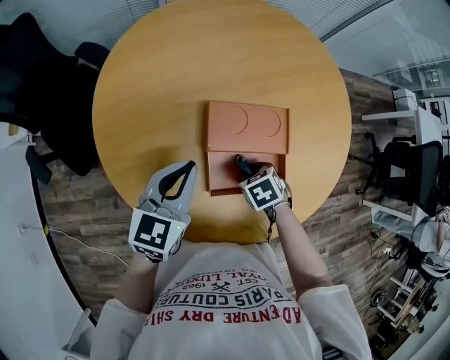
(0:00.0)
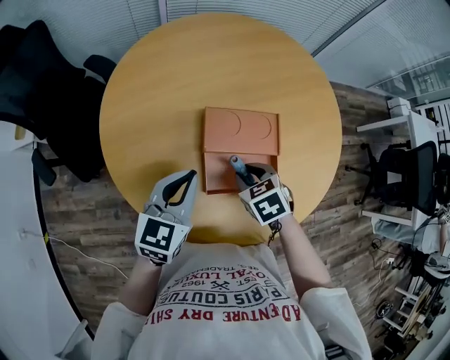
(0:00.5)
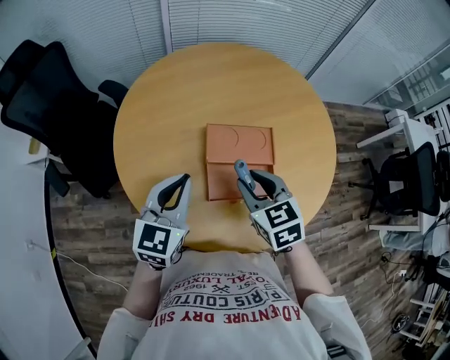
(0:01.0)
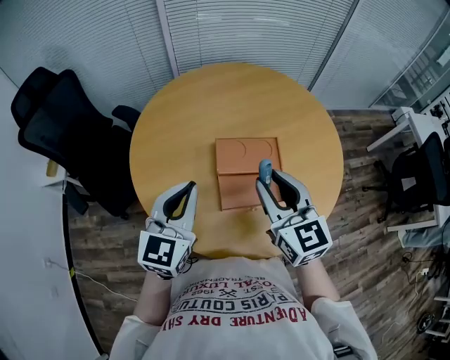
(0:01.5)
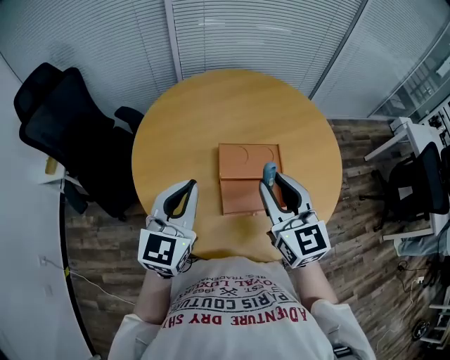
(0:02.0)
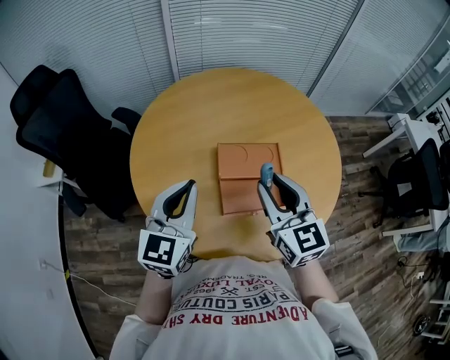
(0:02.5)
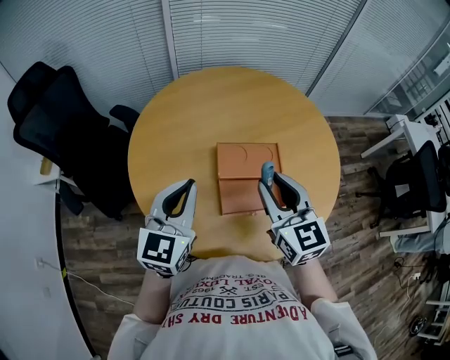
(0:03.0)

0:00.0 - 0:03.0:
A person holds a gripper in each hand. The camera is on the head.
0:00.0 - 0:01.5: The right gripper moves upward, approximately 35 cm, and tips its fingers upward by roughly 70 degrees; the left gripper heads upward, covering about 15 cm.
0:01.5 - 0:03.0: The grippers make only small movements.

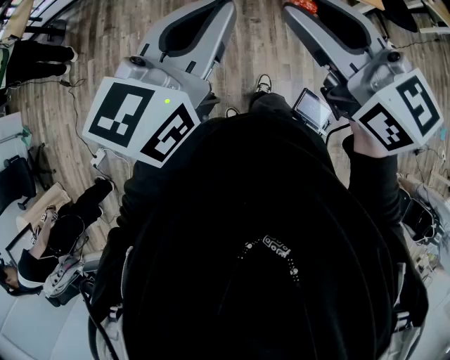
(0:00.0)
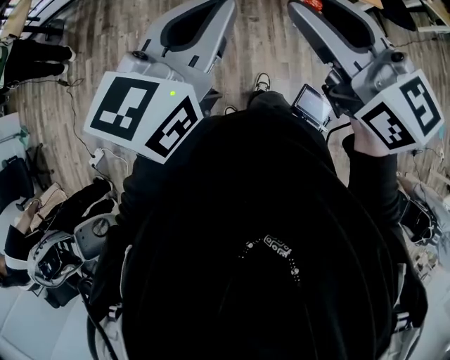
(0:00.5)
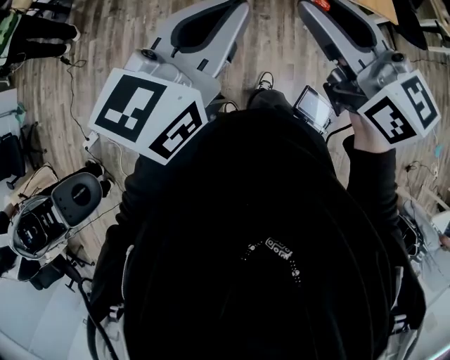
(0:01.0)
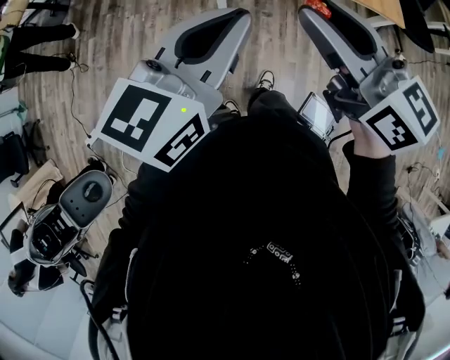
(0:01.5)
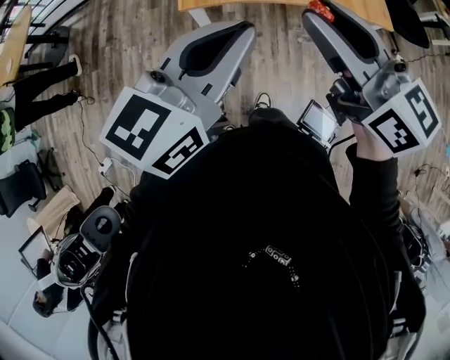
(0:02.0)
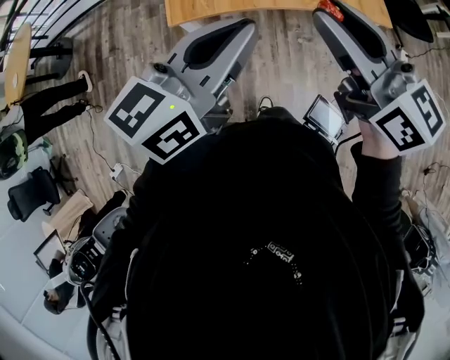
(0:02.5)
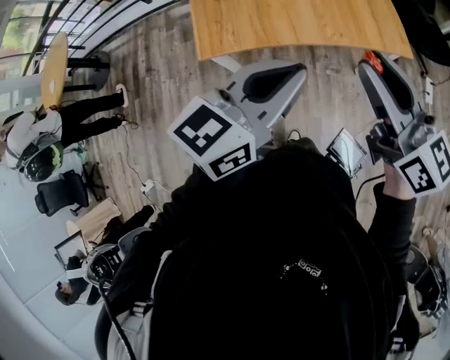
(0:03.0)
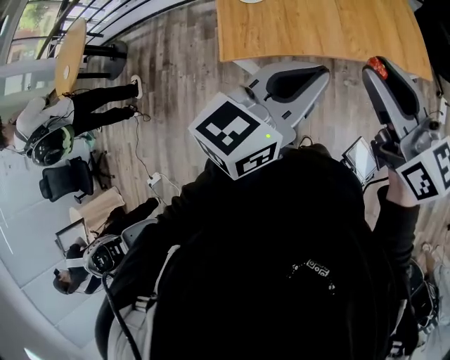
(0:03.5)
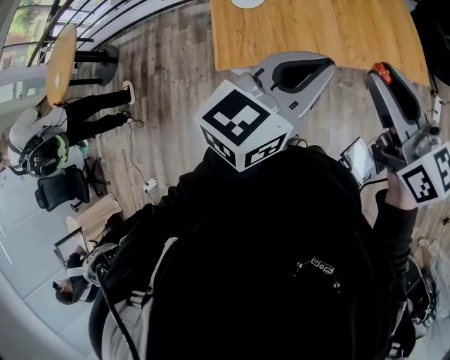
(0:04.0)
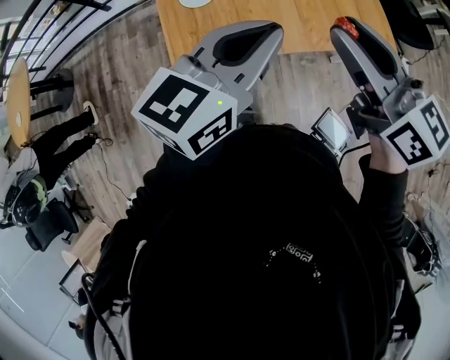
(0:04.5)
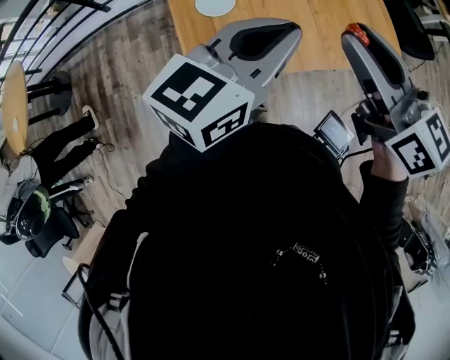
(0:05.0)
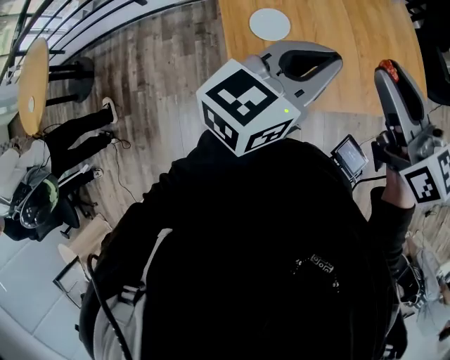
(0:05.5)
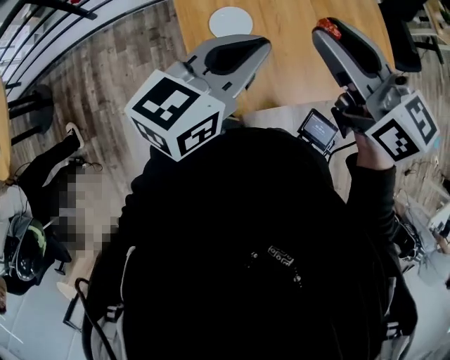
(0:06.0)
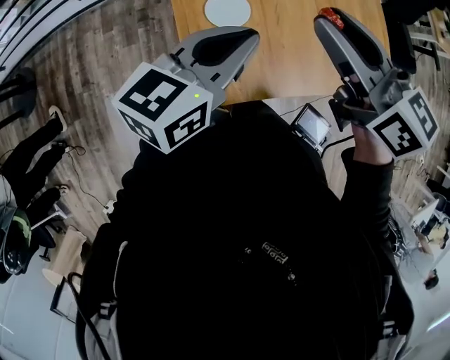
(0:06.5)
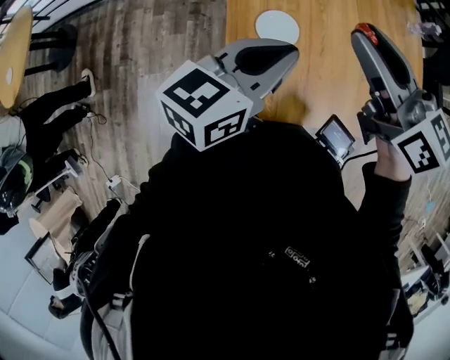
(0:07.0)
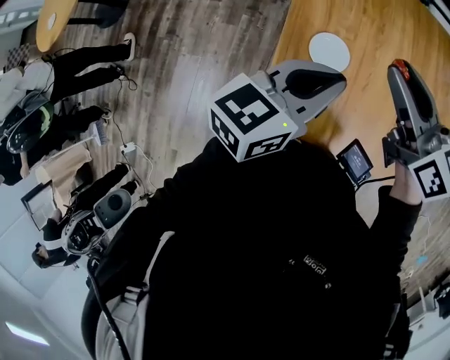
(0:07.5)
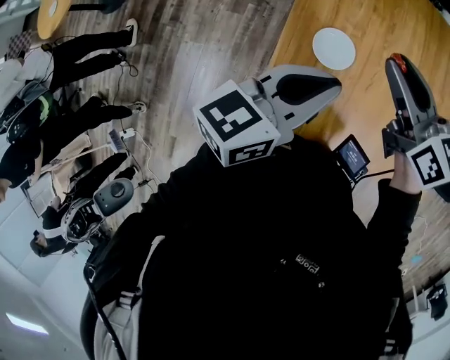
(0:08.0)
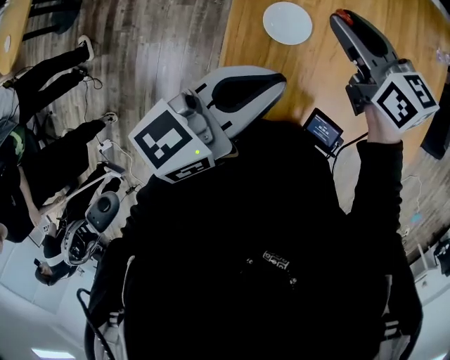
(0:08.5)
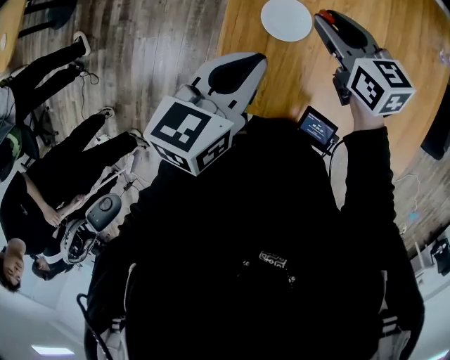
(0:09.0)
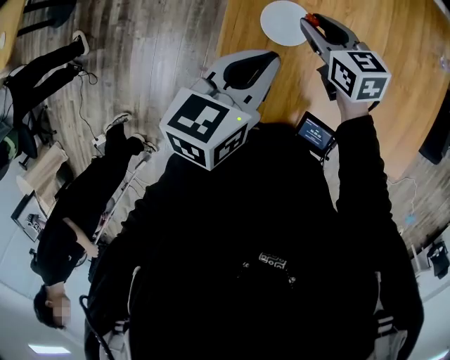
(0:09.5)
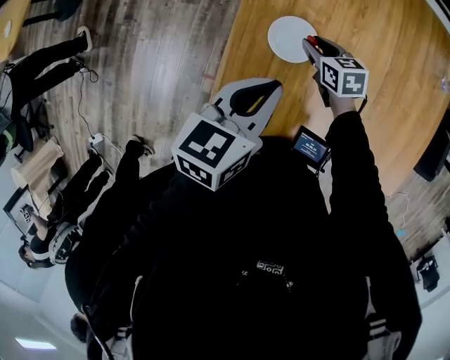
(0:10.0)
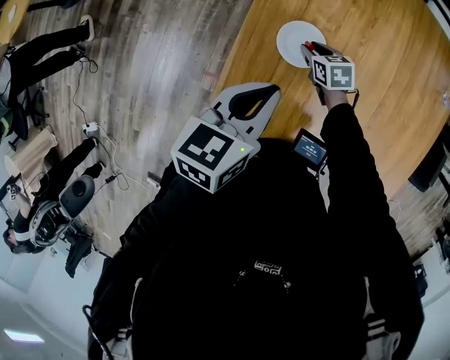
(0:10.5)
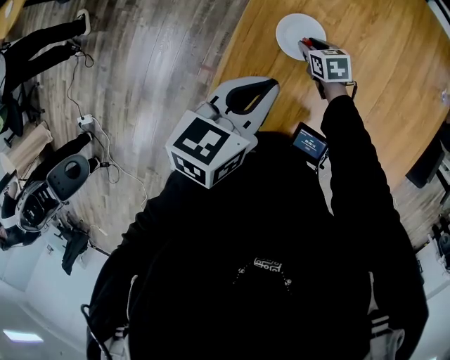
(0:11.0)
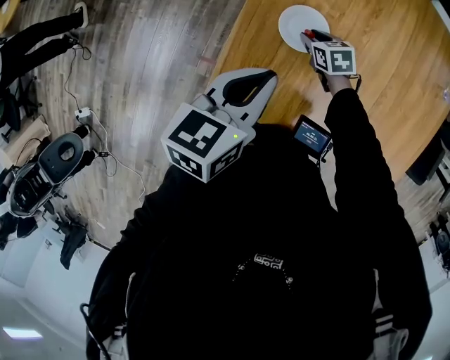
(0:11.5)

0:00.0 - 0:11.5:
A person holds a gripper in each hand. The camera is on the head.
0:00.0 - 0:02.0: Both grippers travel together forward and to the right, approximately 20 cm.
0:02.0 - 0:04.0: The two grippers go roughly 20 cm forward and to the right.
0:04.0 - 0:06.0: Both grippers move to the left and forward, about 35 cm.
0:06.0 - 0:07.5: The right gripper moves forward and downward, some 10 cm, while the left gripper heads forward, covering roughly 5 cm.
0:07.5 - 0:09.5: The right gripper travels downward by roughly 25 cm, and swivels roughly 20 degrees. The left gripper heads downward, covering roughly 10 cm, and rotates about 20 degrees.
0:09.5 - 0:11.5: The left gripper ends up approximately 5 cm from where it was, while the right gripper travels downward by about 20 cm, and changes its angle by some 20 degrees.

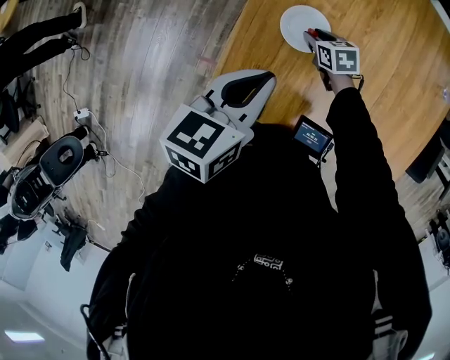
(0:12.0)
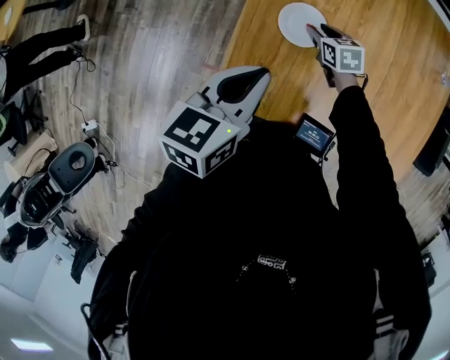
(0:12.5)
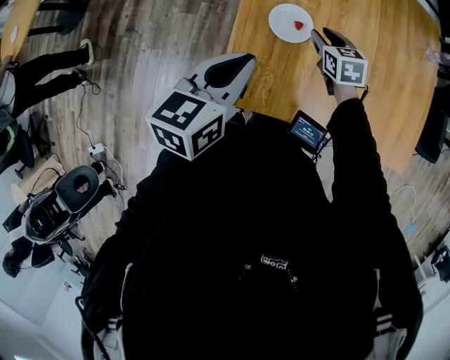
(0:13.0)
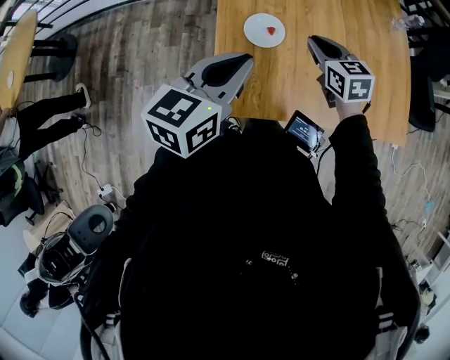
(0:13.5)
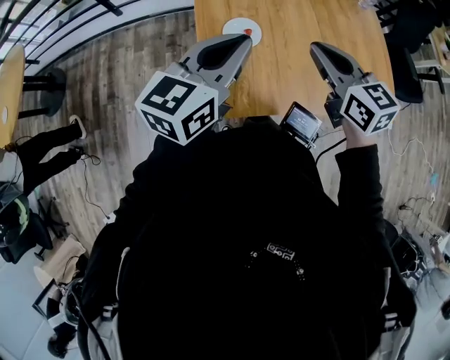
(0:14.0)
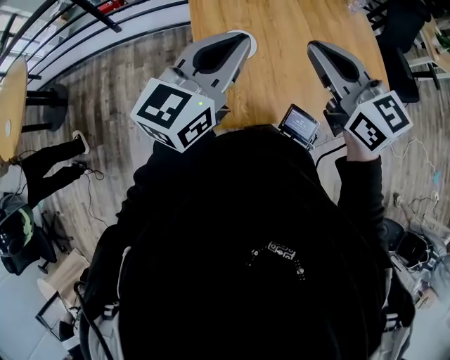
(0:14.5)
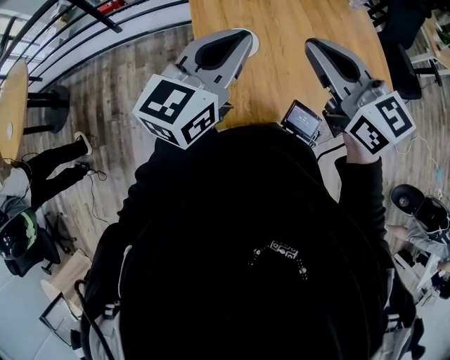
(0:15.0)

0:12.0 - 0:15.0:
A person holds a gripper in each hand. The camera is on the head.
0:12.0 - 0:13.5: The left gripper is displaced upward by roughly 5 cm, and rotates approximately 20 degrees, while the right gripper heads upward, covering some 20 cm, changes its angle by approximately 30 degrees, and closes.
0:13.5 - 0:15.0: The right gripper moves upward, roughly 30 cm, and rotates some 30 degrees. The left gripper heads upward, covering approximately 15 cm, and rotates roughly 20 degrees.

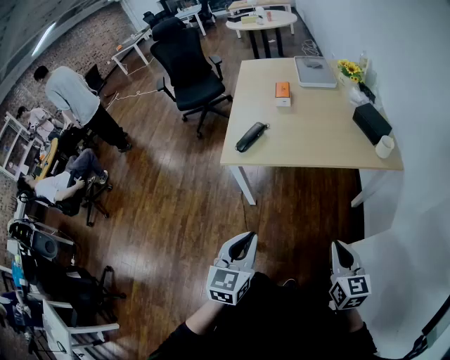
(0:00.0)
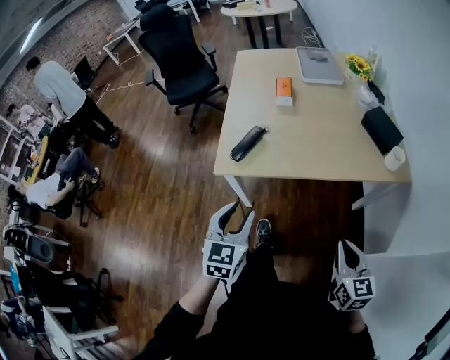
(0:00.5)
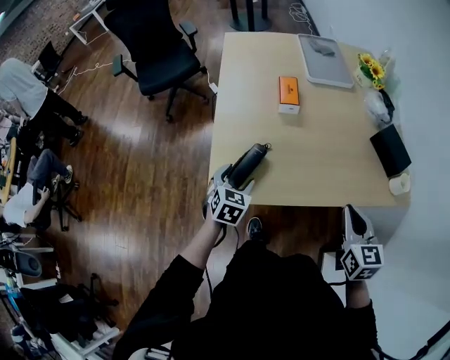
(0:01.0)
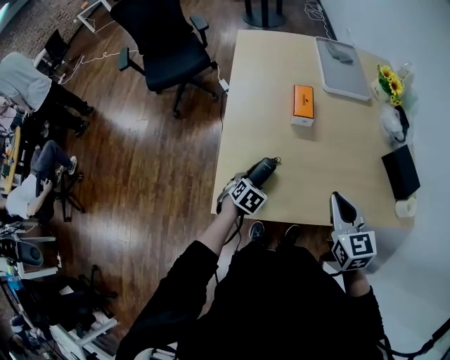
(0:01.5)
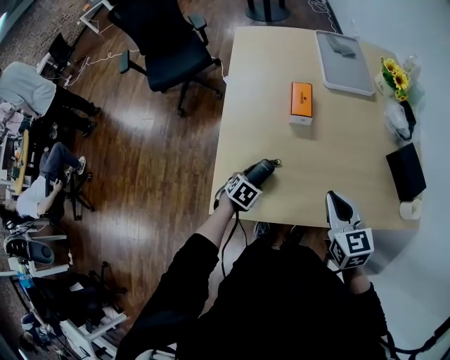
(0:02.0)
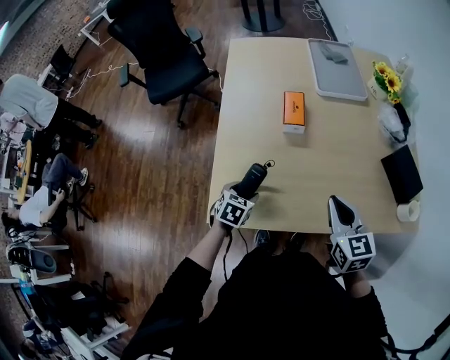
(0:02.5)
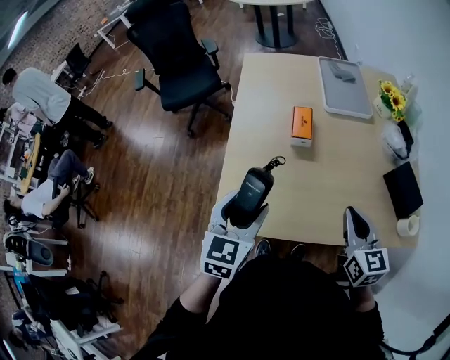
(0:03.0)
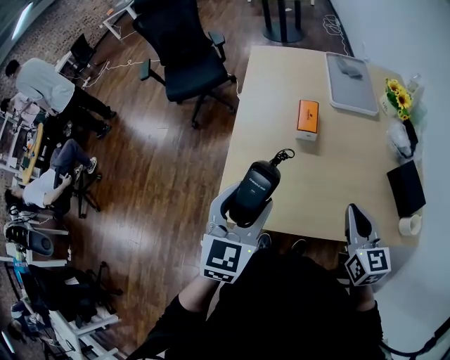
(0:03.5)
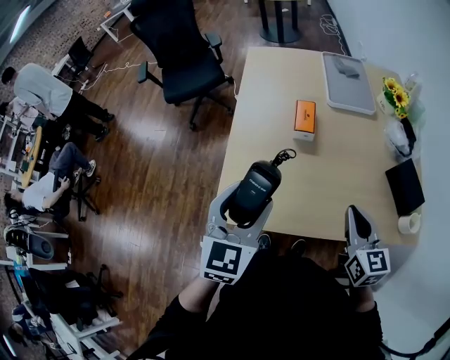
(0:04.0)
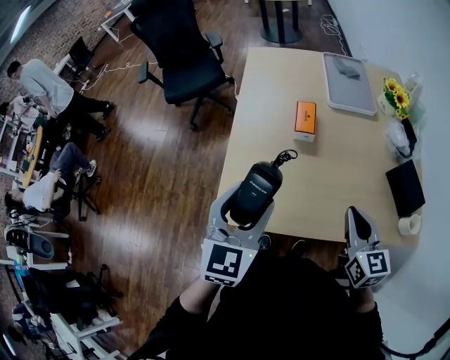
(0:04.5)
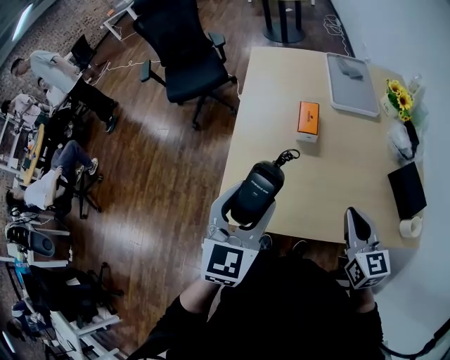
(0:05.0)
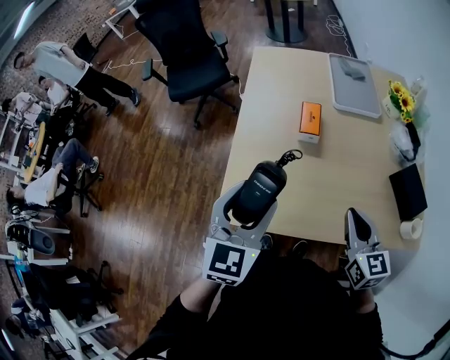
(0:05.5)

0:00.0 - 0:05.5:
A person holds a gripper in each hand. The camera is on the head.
0:00.0 - 0:02.0: The pair of grippers is taken forward, some 50 cm. The left gripper heads downward, covering about 30 cm, angles its fingers downward, by roughly 50 degrees, and opens up.
0:02.0 - 0:03.5: The right gripper shifts about 10 cm upward and to the right; the left gripper heads upward, covering roughly 35 cm, and points its fingers approximately 50 degrees further upward.
0:03.5 - 0:05.5: The grippers make only small movements.

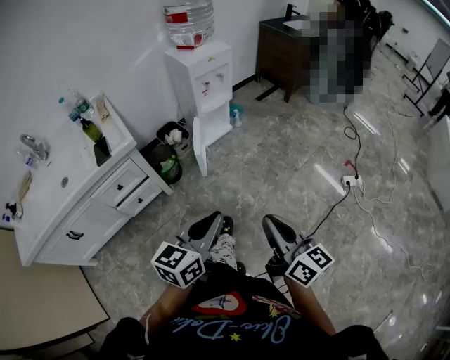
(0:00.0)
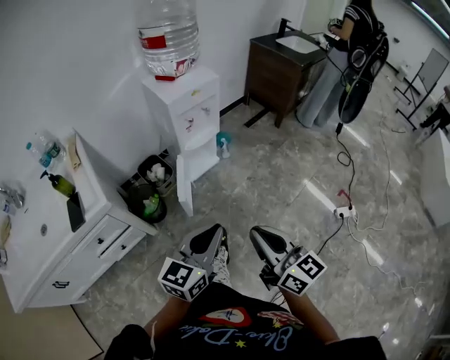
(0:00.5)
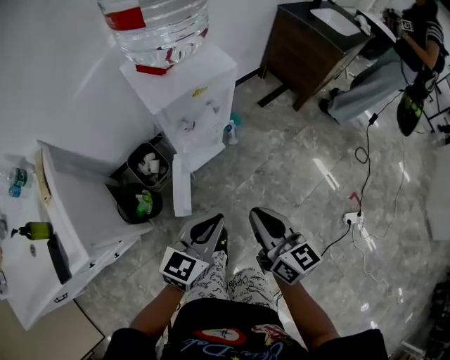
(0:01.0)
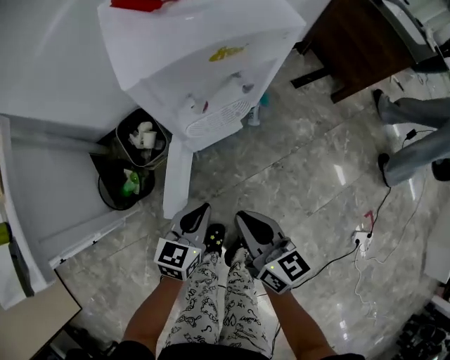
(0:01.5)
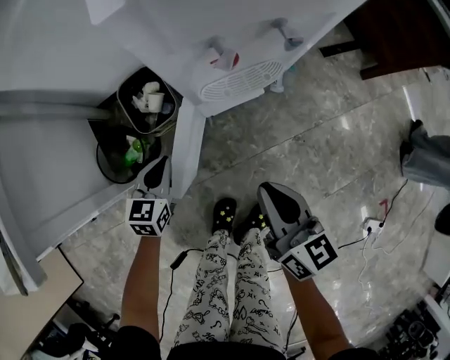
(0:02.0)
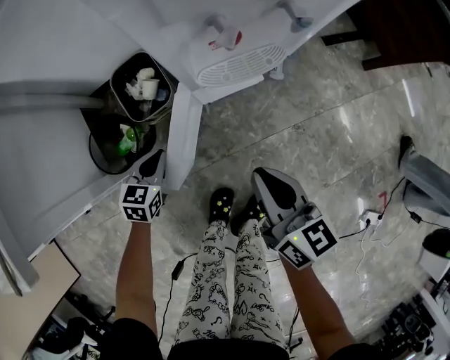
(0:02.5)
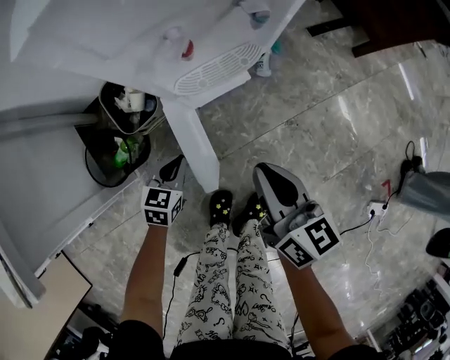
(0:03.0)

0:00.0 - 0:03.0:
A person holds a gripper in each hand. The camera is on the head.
0:00.0 - 0:01.5: Both grippers are carried forward, about 60 cm. The grippers both shift downward by approximately 35 cm. The right gripper rotates roughly 20 degrees, while the left gripper changes its angle by some 20 degrees.
0:01.5 - 0:03.0: The right gripper goes about 10 cm downward; the left gripper goes roughly 20 cm downward.
